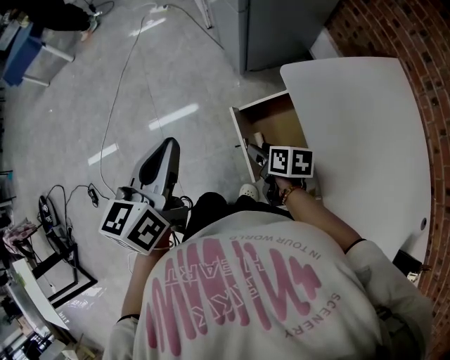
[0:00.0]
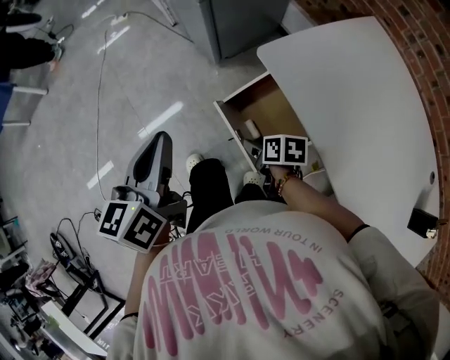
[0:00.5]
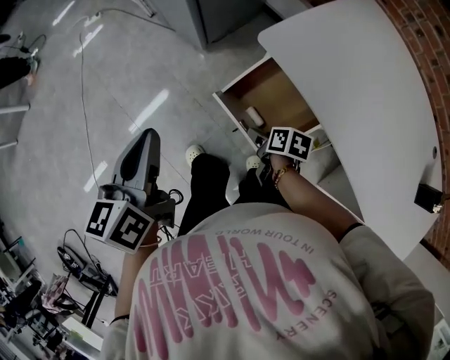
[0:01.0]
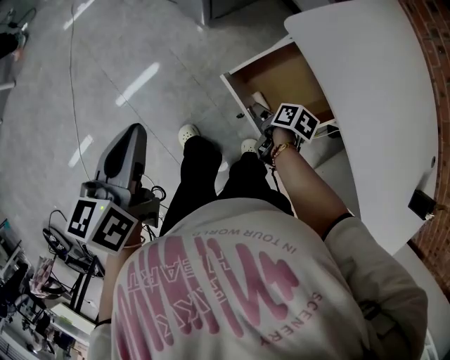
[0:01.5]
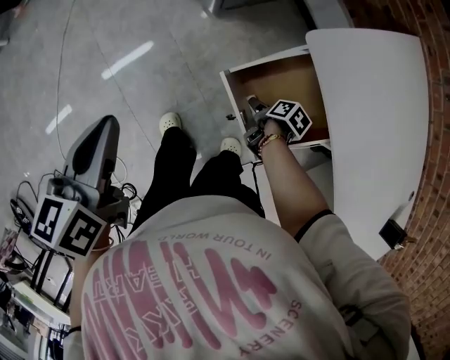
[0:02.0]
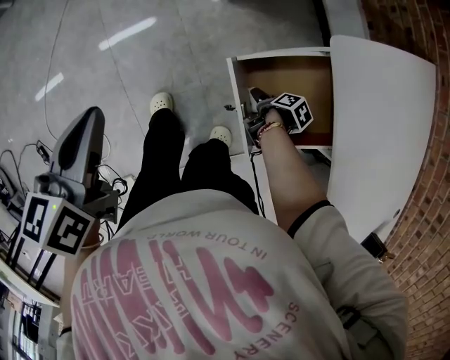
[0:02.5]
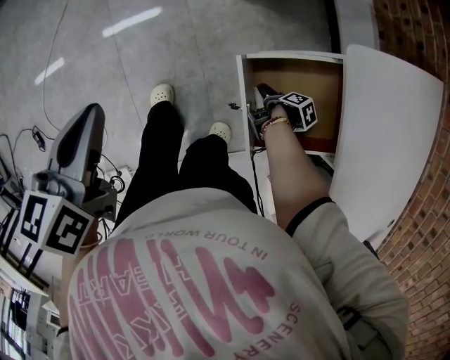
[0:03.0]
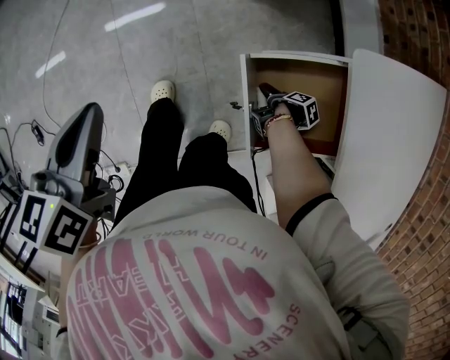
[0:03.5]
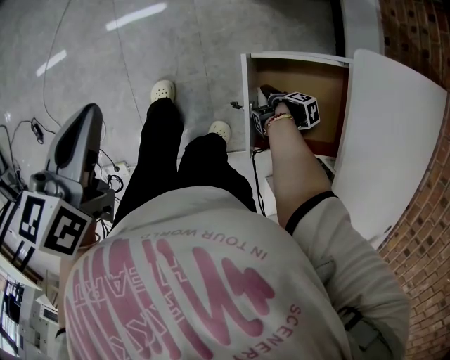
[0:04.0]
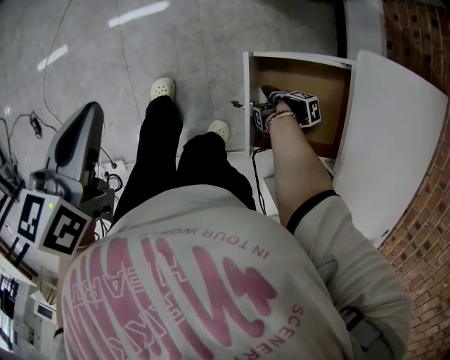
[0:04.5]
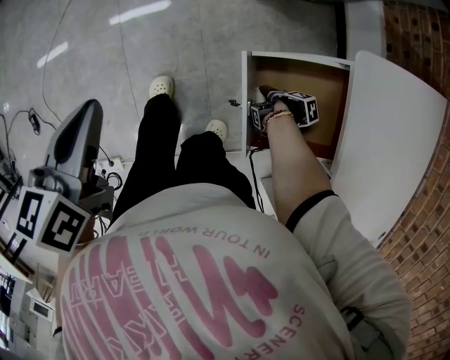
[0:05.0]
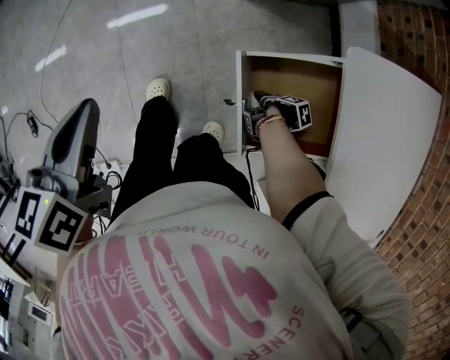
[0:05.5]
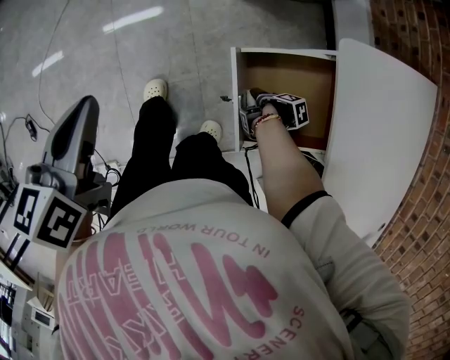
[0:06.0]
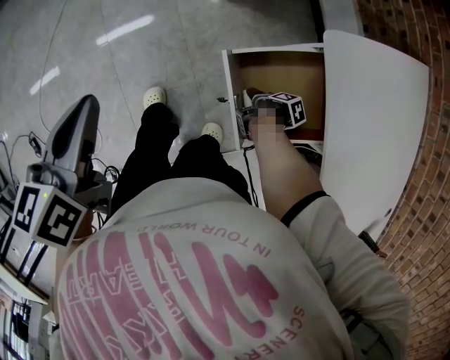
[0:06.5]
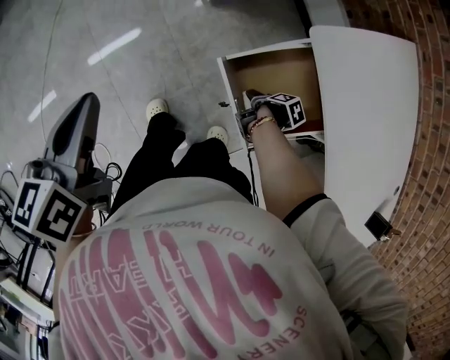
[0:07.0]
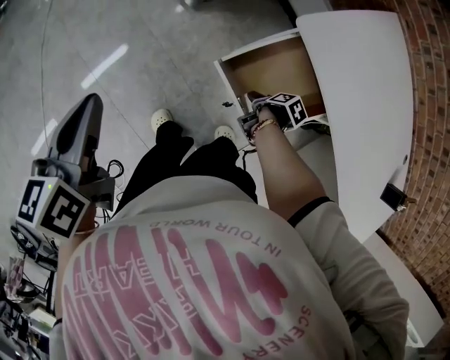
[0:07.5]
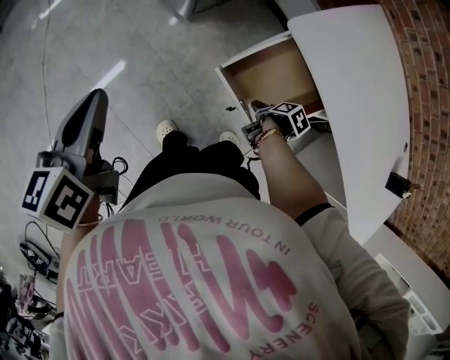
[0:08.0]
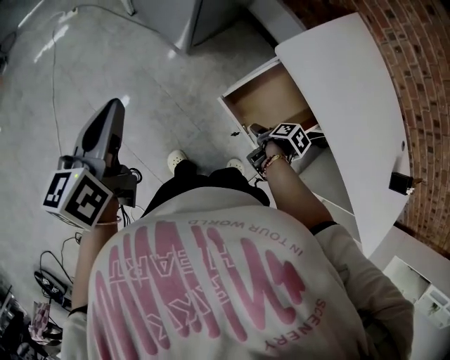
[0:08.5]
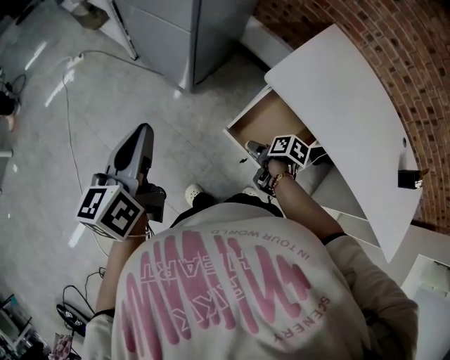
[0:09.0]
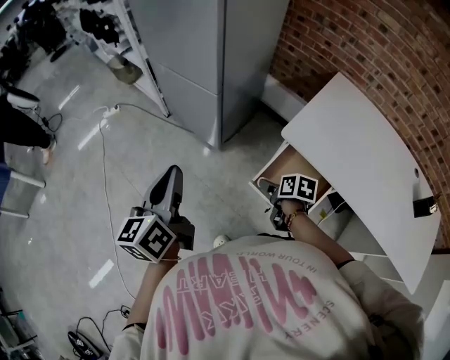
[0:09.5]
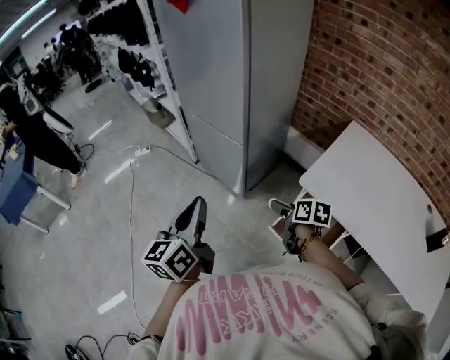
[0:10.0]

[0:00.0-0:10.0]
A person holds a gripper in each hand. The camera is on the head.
0:00.0 to 0:02.0: The right gripper shifts about 20 cm downward, rolls clockwise, seen from behind, by roughly 50 degrees, and opens its fingers. The left gripper goes some 20 cm downward, forward and to the left.
0:02.0 to 0:04.0: The left gripper changes place by approximately 10 cm. Meanwhile the right gripper moves downward, about 10 cm.
0:04.0 to 0:06.0: The grippers stay close to where they were, moving slightly.
0:06.0 to 0:08.0: The right gripper is displaced upward by roughly 10 cm, while the left gripper shifts by roughly 15 cm, and rotates some 30 degrees.
0:08.0 to 0:10.0: The right gripper goes approximately 30 cm upward, and angles its fingers upward, by some 40 degrees. The left gripper is displaced upward by approximately 15 cm, and rotates some 20 degrees.

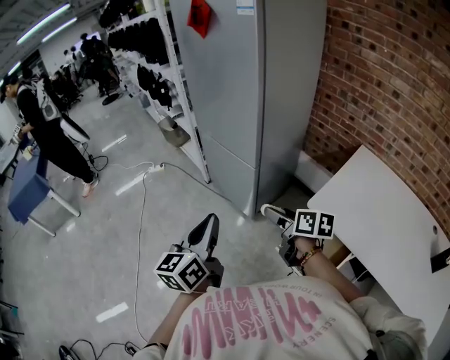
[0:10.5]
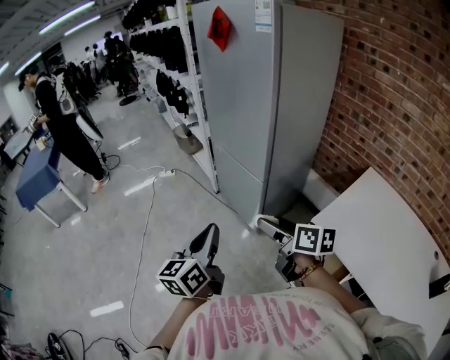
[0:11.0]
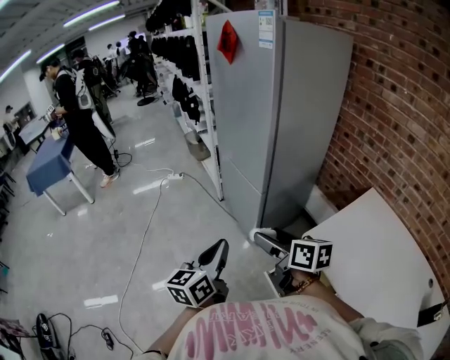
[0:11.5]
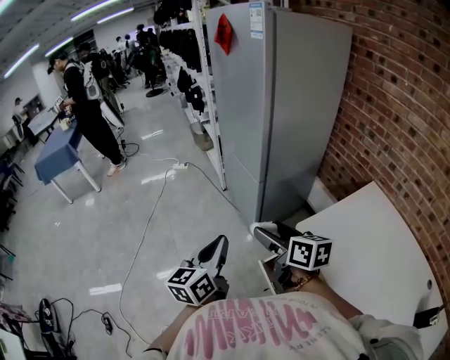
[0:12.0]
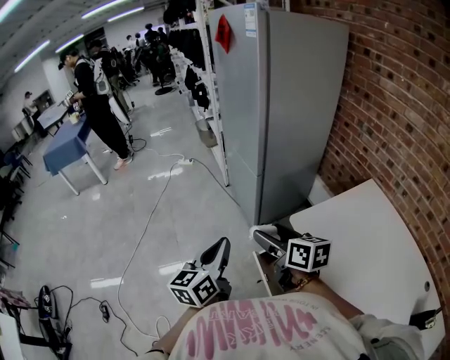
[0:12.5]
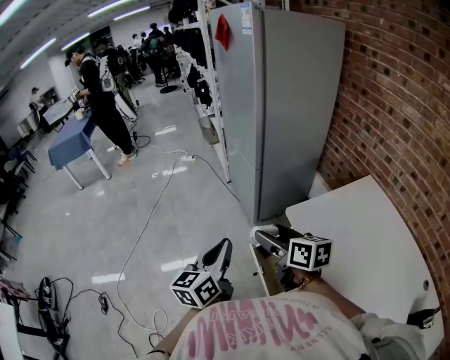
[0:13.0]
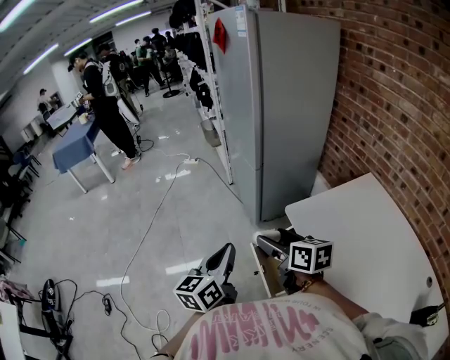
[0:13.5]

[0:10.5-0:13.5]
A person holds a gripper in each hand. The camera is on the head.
0:10.5 to 0:12.0: The right gripper is displaced upward and backward by some 10 cm, and swivels roughly 30 degrees; the left gripper goes some 15 cm to the right and backward.
0:12.0 to 0:13.5: The grippers both shift backward and to the right by some 15 cm.

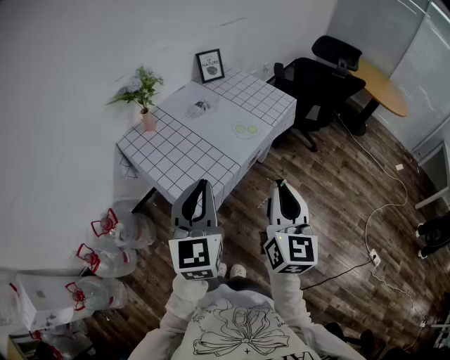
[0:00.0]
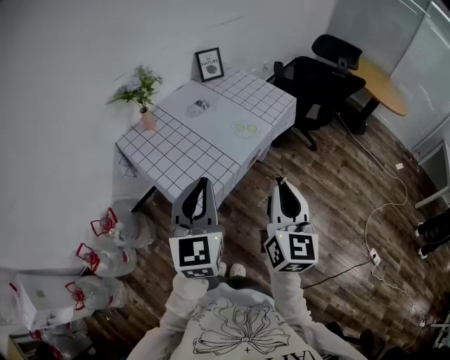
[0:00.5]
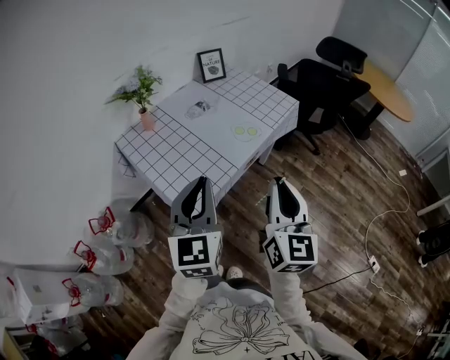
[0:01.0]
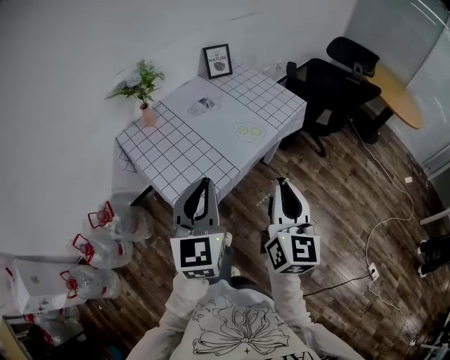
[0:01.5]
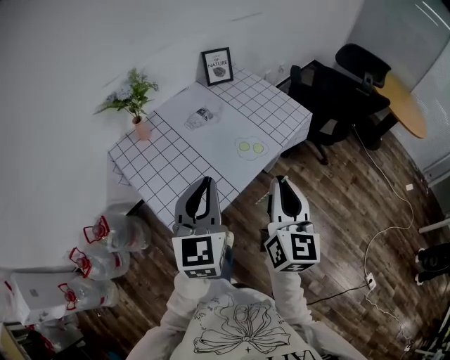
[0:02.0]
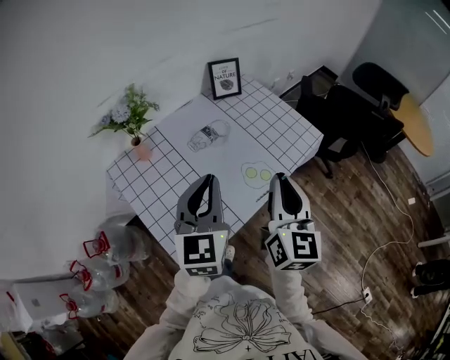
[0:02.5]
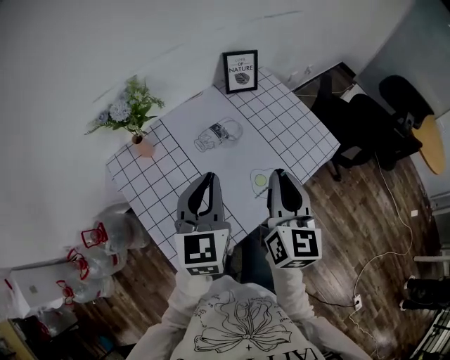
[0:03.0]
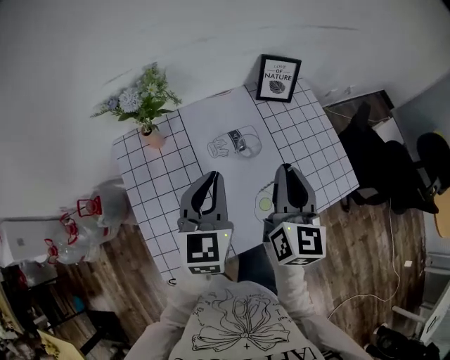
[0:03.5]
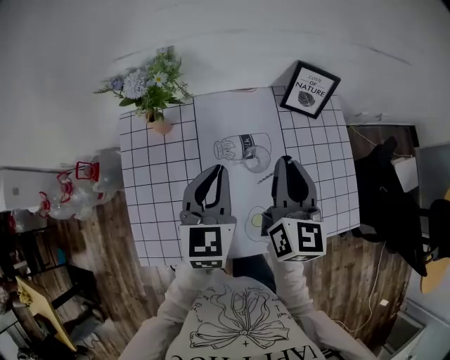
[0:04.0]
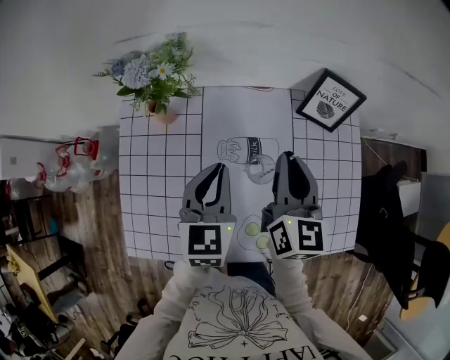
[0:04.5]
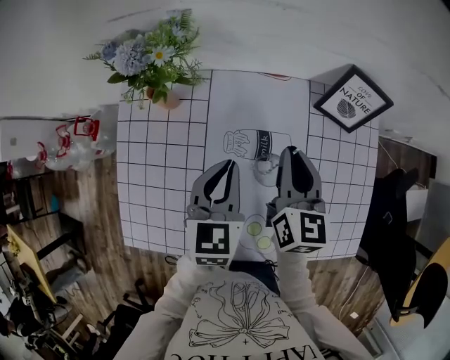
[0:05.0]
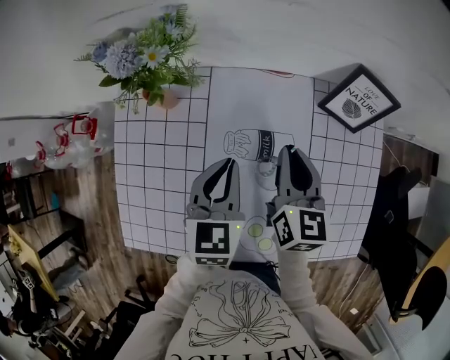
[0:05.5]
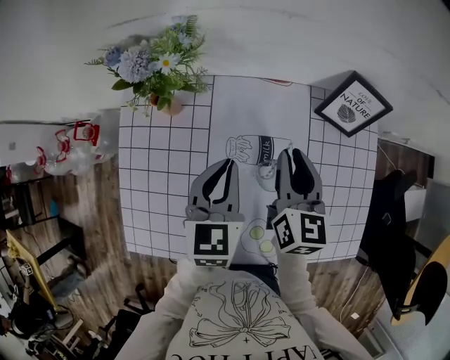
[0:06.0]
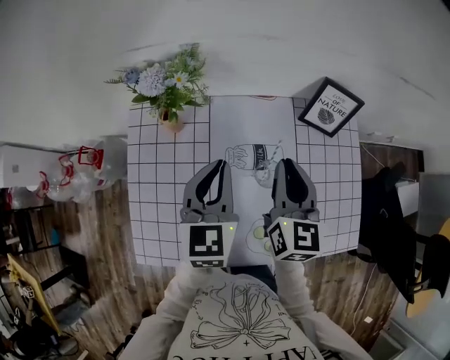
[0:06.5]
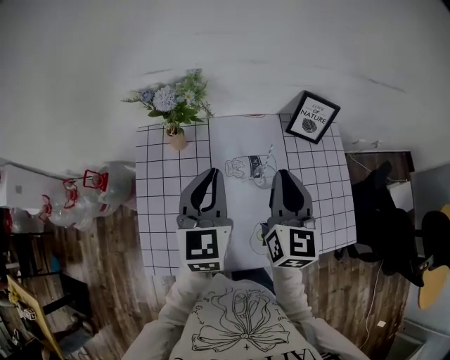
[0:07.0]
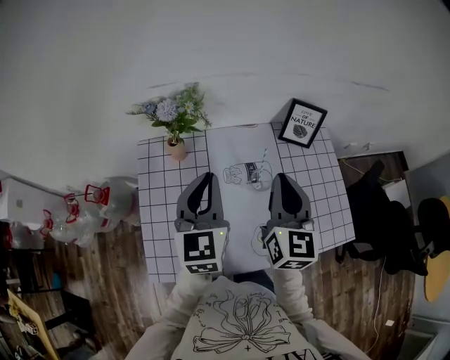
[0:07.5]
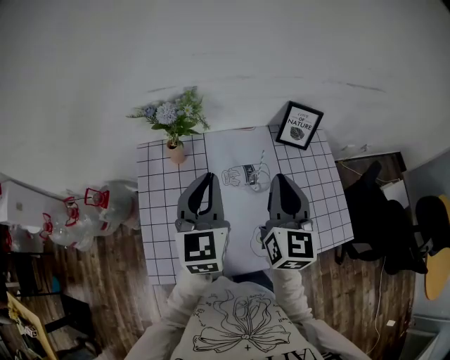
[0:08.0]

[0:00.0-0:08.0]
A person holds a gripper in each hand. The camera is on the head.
0:00.0 to 0:02.0: Both grippers travel together forward, approximately 15 cm.
0:02.0 to 0:04.0: The left gripper shifts by approximately 35 cm, and changes its angle by roughly 30 degrees. Meanwhile the right gripper shifts by approximately 50 cm, and turns by some 40 degrees.
0:04.0 to 0:06.0: Both grippers travel together downward and forward, approximately 10 cm.
0:06.0 to 0:08.0: The two grippers go approximately 20 cm upward and backward. The left gripper changes its angle by some 20 degrees; the right gripper changes its angle by roughly 20 degrees.

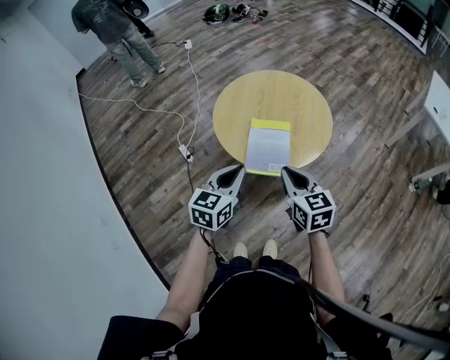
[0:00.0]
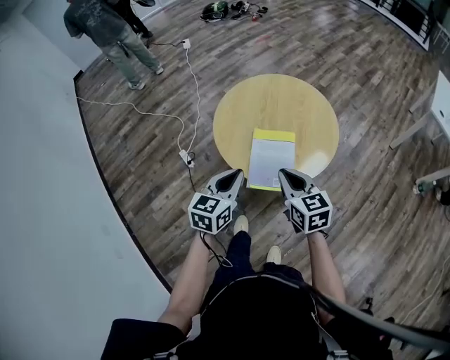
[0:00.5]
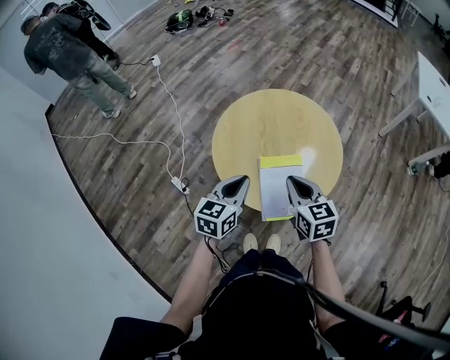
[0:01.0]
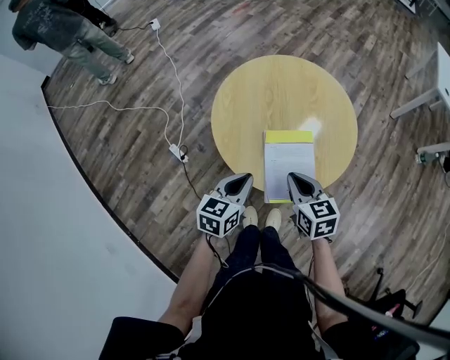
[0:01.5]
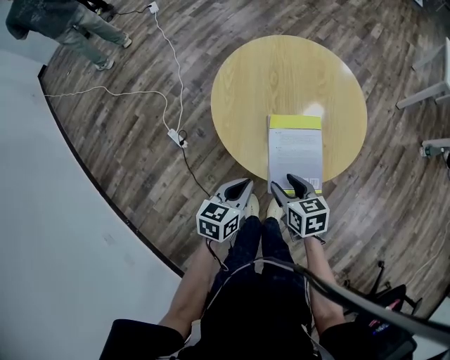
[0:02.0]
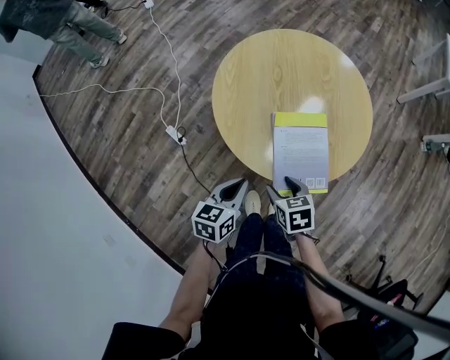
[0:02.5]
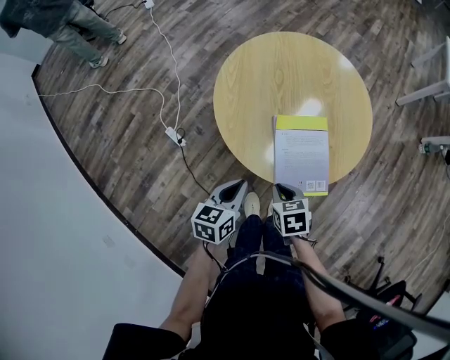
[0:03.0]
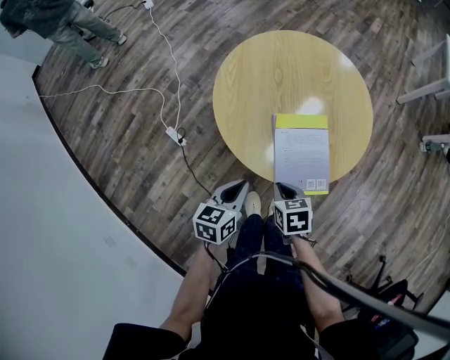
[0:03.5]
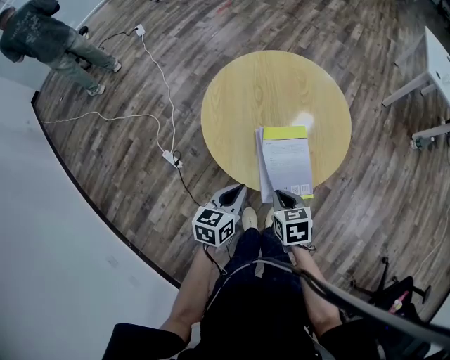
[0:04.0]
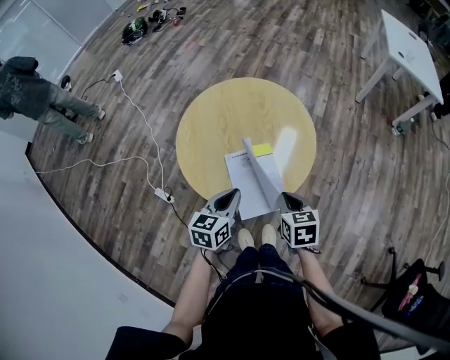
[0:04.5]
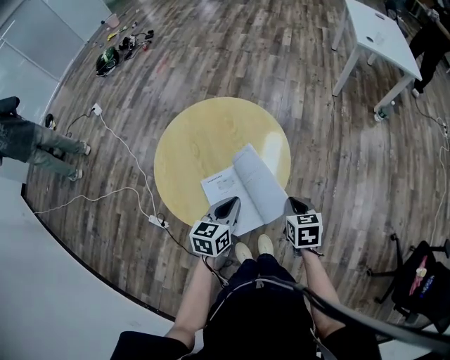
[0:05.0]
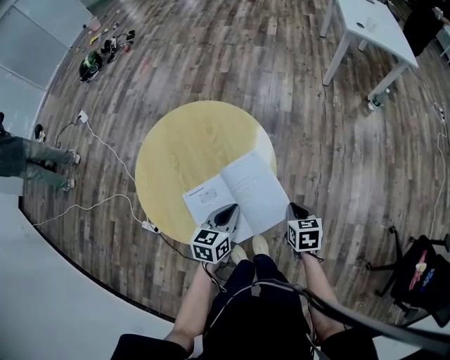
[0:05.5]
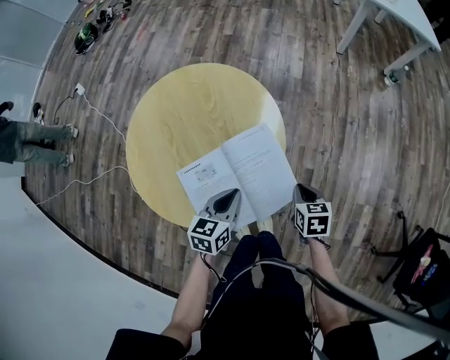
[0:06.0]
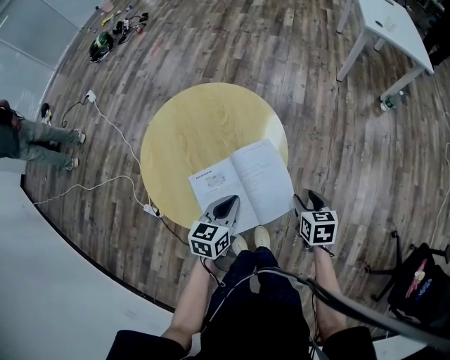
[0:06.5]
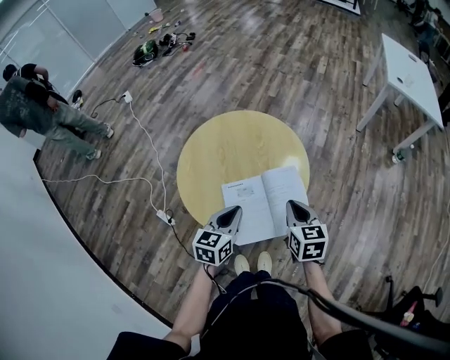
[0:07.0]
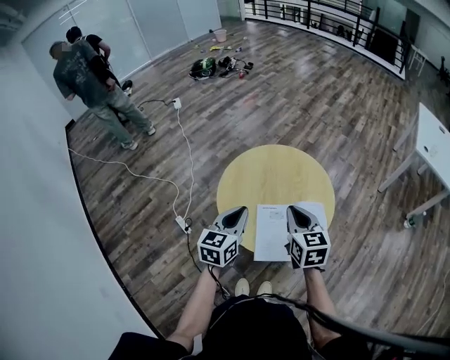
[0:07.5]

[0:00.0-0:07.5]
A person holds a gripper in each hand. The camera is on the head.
0:00.0 to 0:02.0: The left gripper travels downward, forward and to the left by roughly 20 cm, and turns by some 20 degrees; the right gripper travels downward, to the left and forward by approximately 25 cm, swivels about 30 degrees, and opens up.
0:02.0 to 0:04.0: The right gripper closes up.
0:04.0 to 0:05.5: The two grippers go approximately 25 cm to the right and forward. The right gripper turns by approximately 30 degrees.
0:05.5 to 0:07.5: The right gripper moves some 35 cm, tips its fingers upward by approximately 30 degrees, and opens, then closes again. Meanwhile the left gripper changes place by roughly 30 cm, and swivels approximately 30 degrees.
